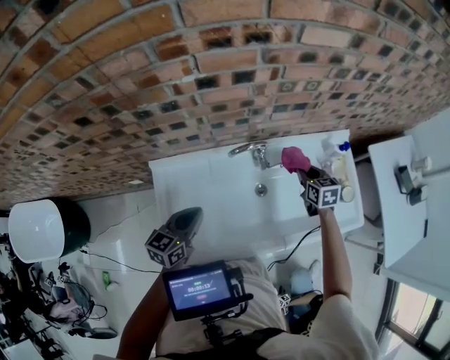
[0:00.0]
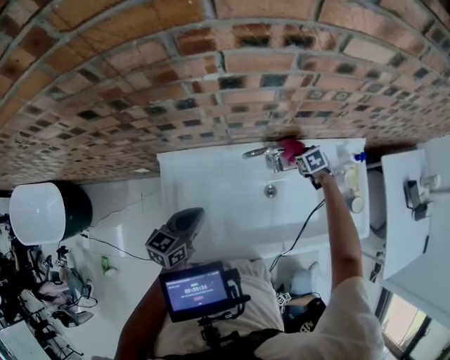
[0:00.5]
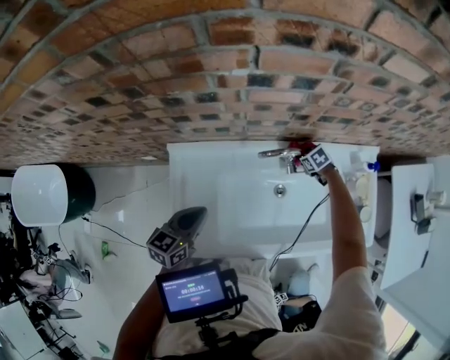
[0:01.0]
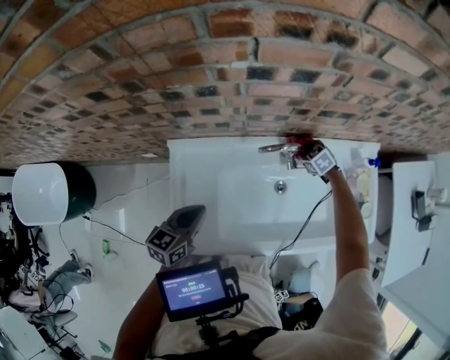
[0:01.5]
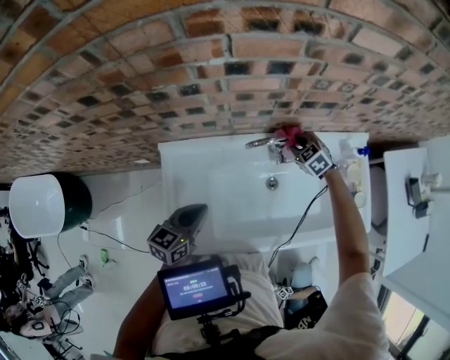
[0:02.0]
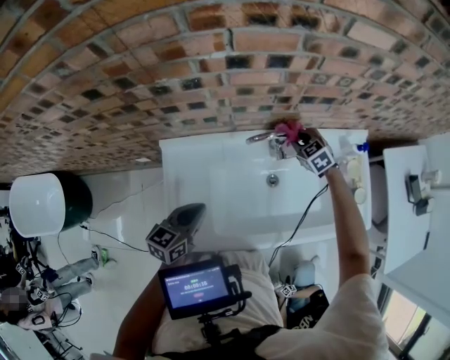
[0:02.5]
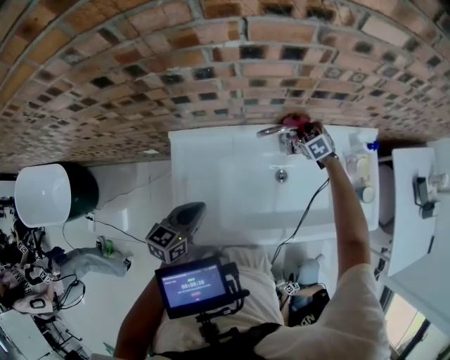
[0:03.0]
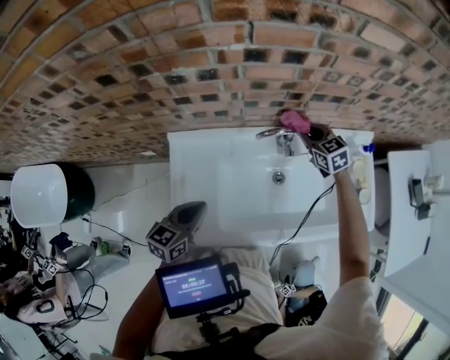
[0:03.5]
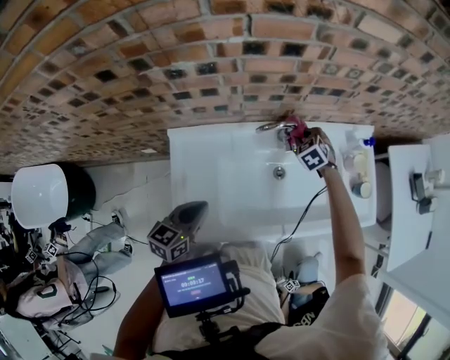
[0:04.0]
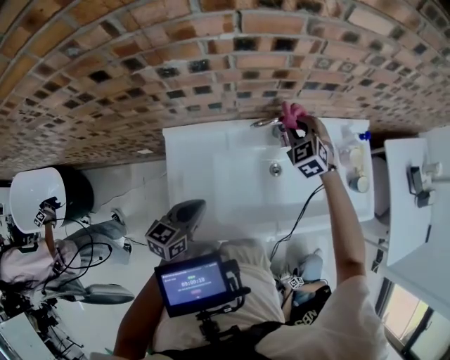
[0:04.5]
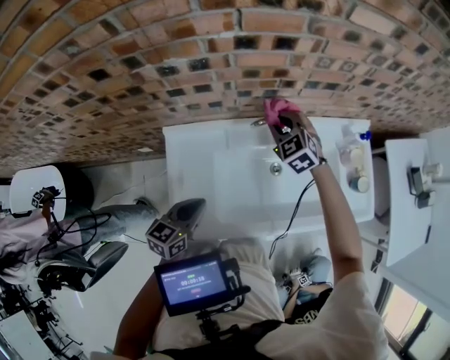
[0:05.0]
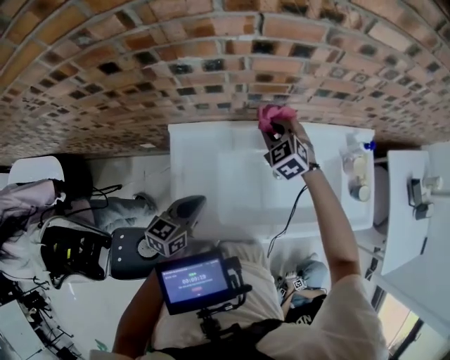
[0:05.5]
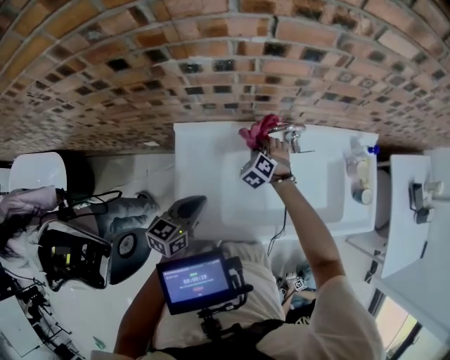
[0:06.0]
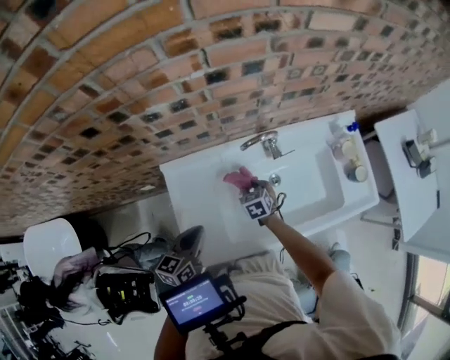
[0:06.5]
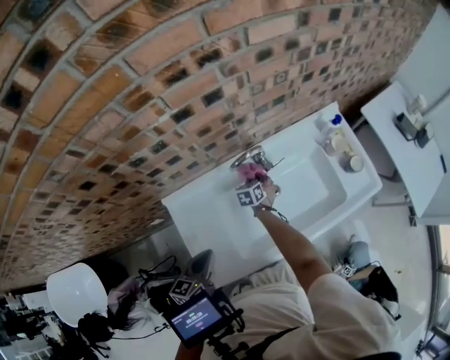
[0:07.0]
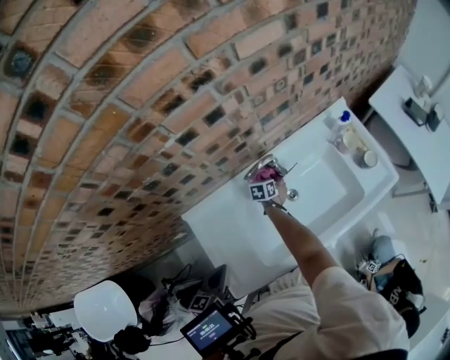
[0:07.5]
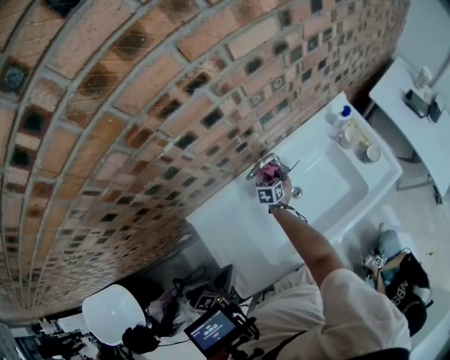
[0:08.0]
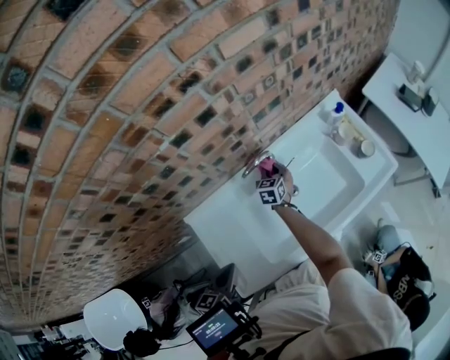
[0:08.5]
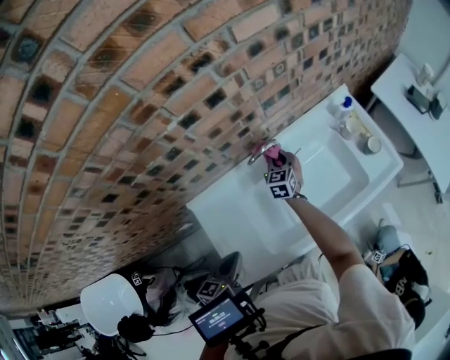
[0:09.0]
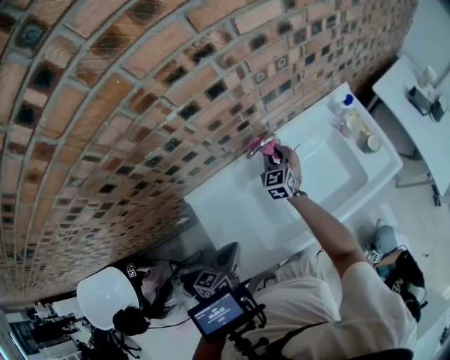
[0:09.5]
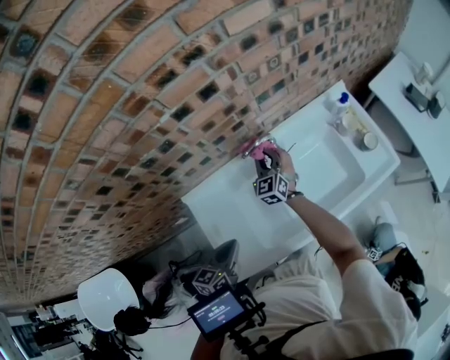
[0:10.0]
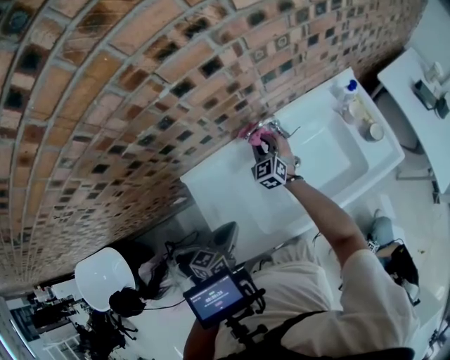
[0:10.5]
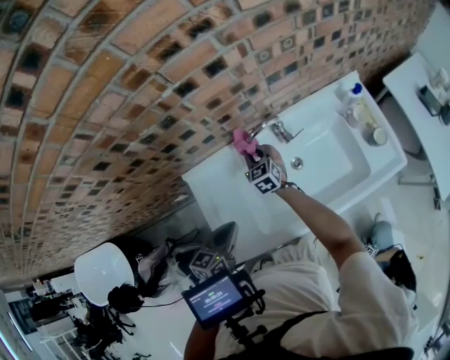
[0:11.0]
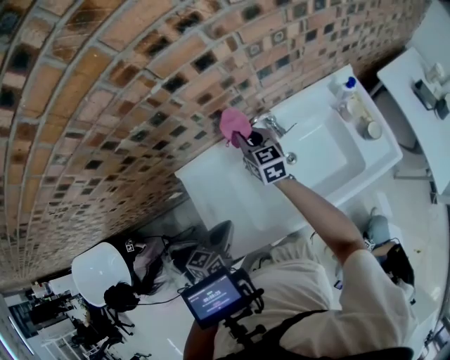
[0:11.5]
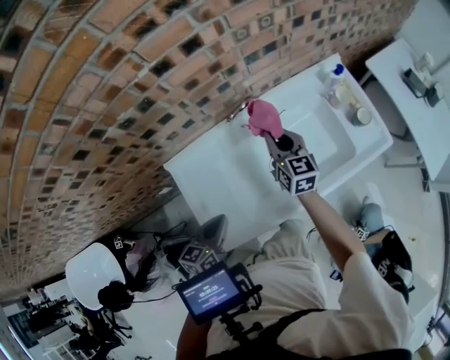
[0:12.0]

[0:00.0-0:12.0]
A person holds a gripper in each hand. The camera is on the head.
0:00.0 to 0:02.0: The right gripper goes some 15 cm to the left, forward and downward, and rotates around the line of its fingers by some 40 degrees, counterclockwise from behind.
0:02.0 to 0:04.0: The left gripper travels backward by about 5 cm; the right gripper moves about 10 cm upward and comes back.
0:04.0 to 0:06.0: The right gripper is displaced to the left and backward by some 20 cm.
0:06.0 to 0:08.0: The right gripper heads to the right, forward and downward, covering approximately 15 cm, and rotates around the line of its fingers by roughly 70 degrees, clockwise from behind.
0:08.0 to 0:10.0: The right gripper heads upward, covering about 15 cm, and turns by some 40 degrees.
0:10.0 to 0:12.0: The right gripper goes roughly 15 cm to the right, upward and backward, and turns by roughly 40 degrees.

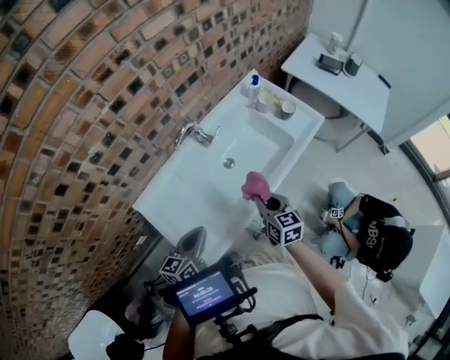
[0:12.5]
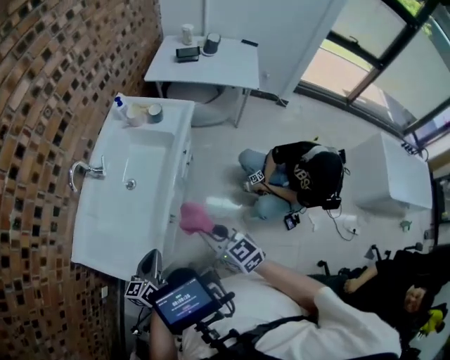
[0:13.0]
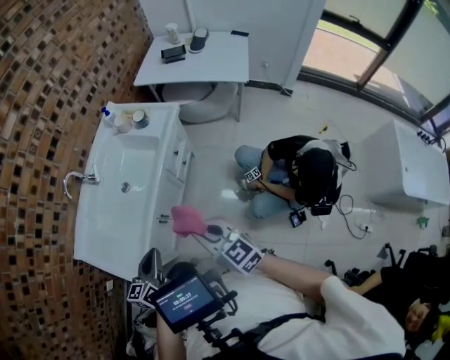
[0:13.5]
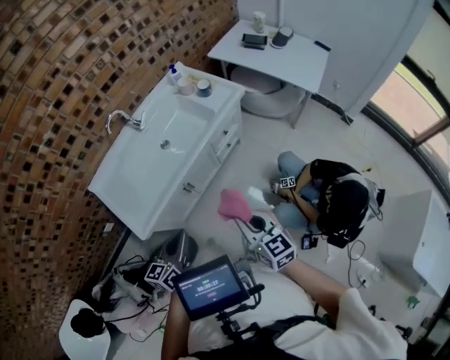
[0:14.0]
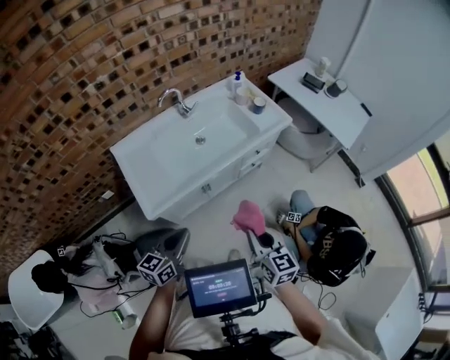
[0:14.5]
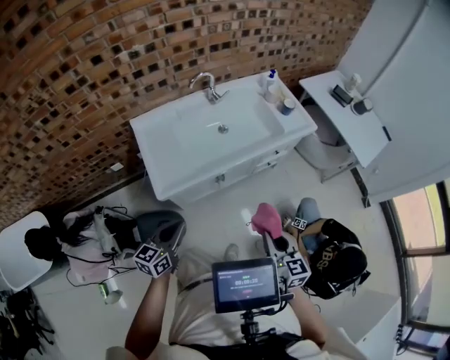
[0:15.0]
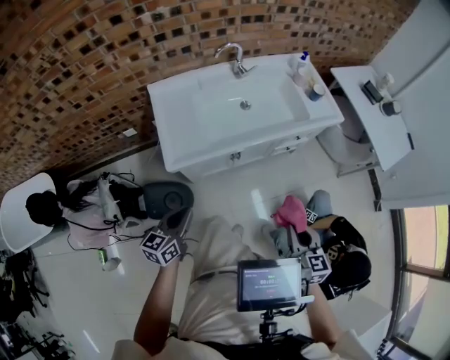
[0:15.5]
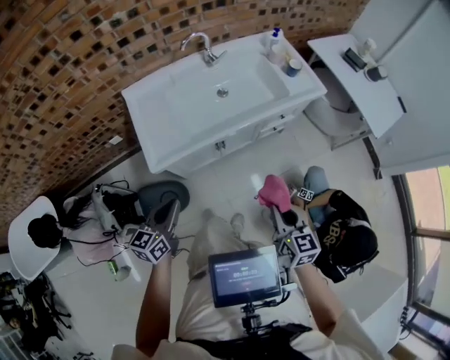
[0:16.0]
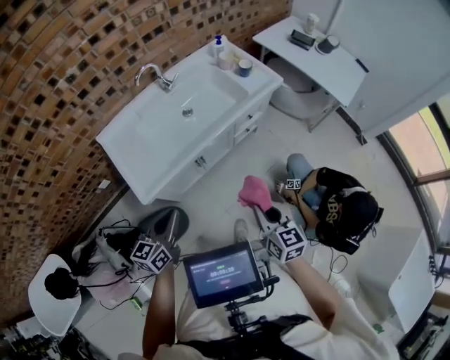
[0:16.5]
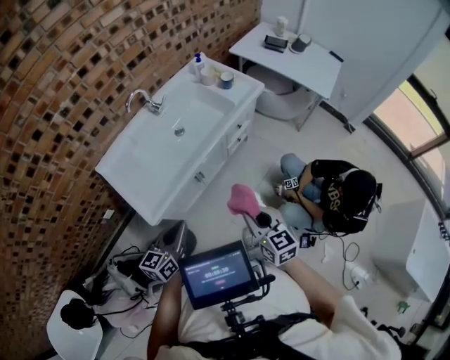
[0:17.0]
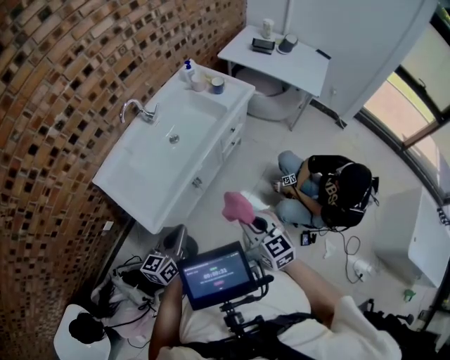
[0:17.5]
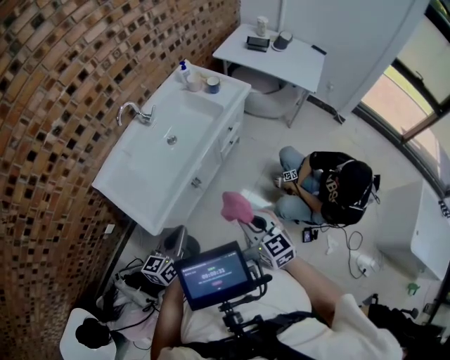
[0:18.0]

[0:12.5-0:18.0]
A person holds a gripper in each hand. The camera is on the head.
0:12.5 to 0:14.5: Both grippers travel together backward and to the right, about 35 cm.
0:14.5 to 0:16.0: The right gripper travels downward by about 5 cm. Meanwhile the left gripper travels to the left by roughly 5 cm.
0:16.0 to 0:18.0: The left gripper ends up approximately 5 cm from where it was, and changes its angle by roughly 30 degrees, while the right gripper travels to the left by about 5 cm.

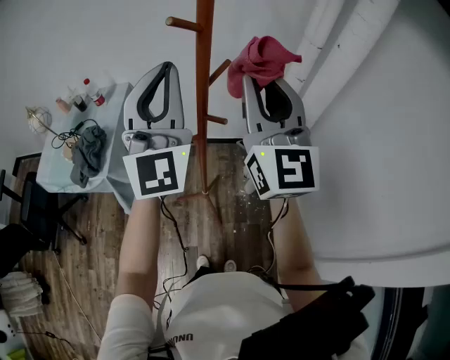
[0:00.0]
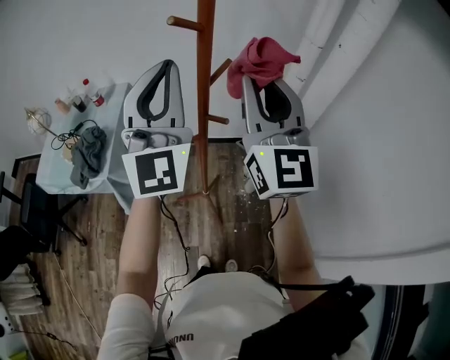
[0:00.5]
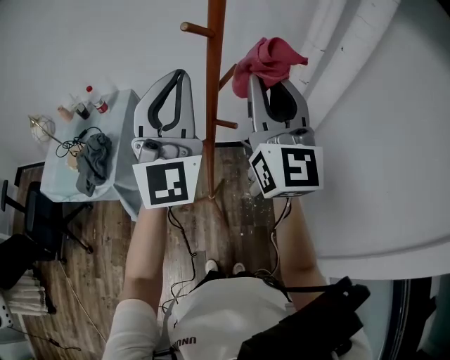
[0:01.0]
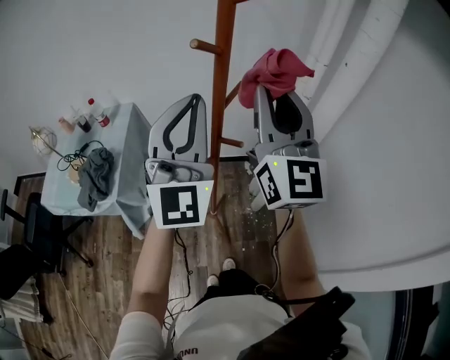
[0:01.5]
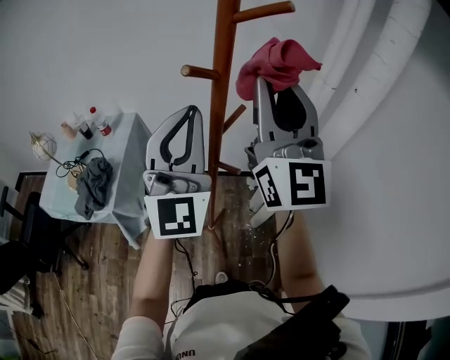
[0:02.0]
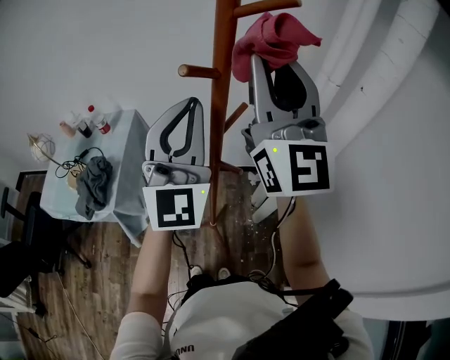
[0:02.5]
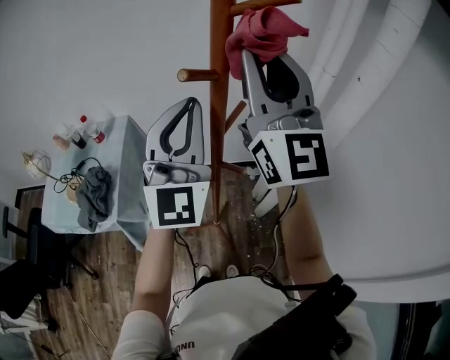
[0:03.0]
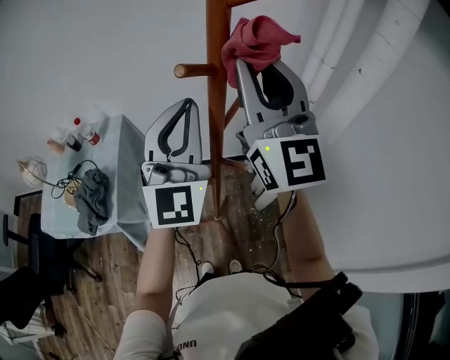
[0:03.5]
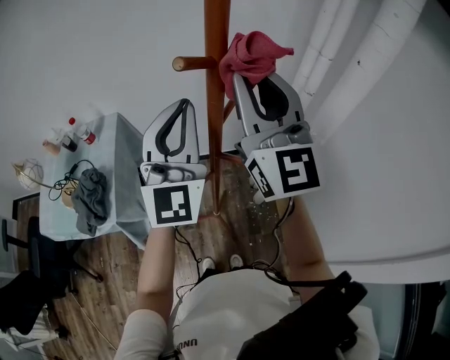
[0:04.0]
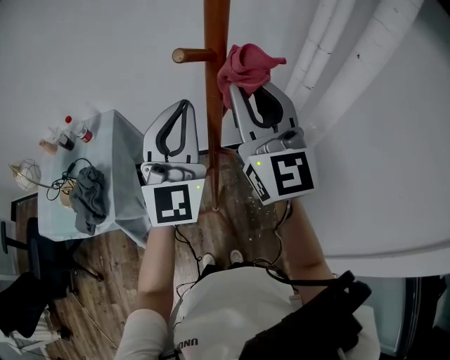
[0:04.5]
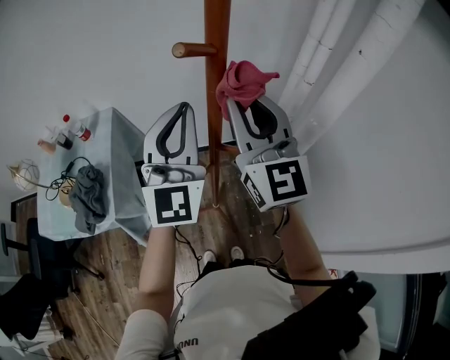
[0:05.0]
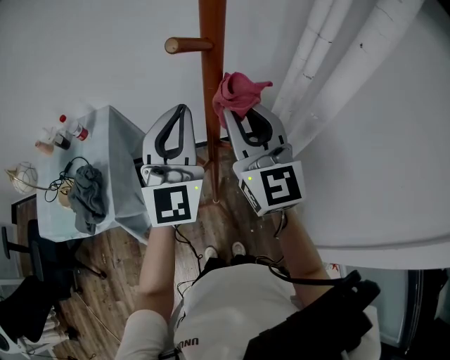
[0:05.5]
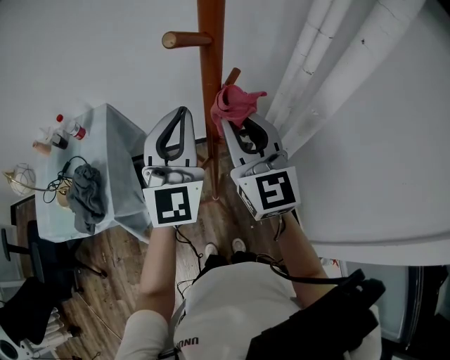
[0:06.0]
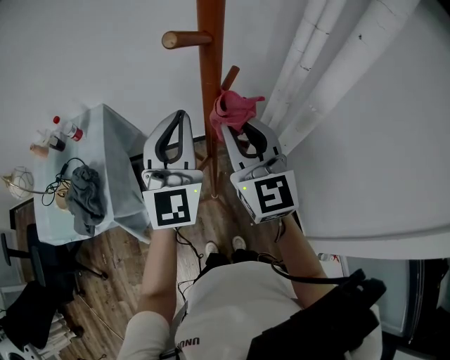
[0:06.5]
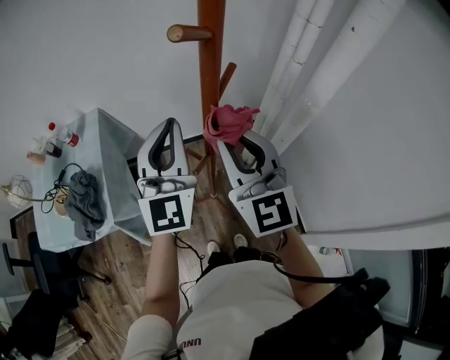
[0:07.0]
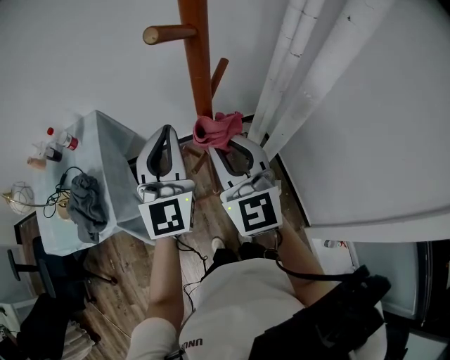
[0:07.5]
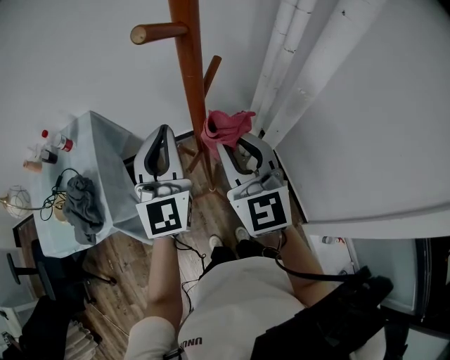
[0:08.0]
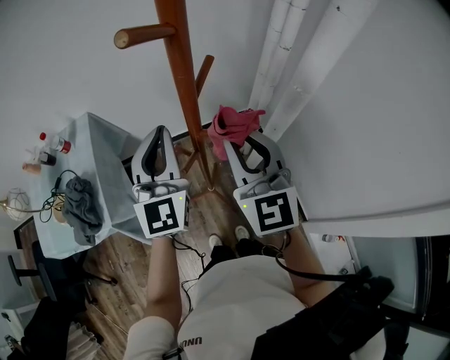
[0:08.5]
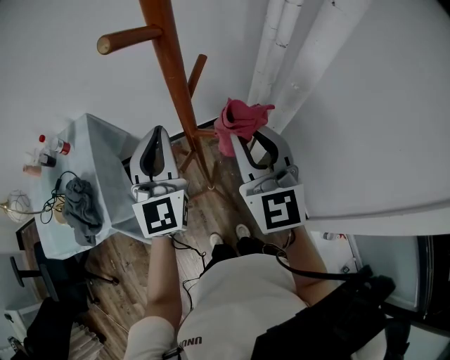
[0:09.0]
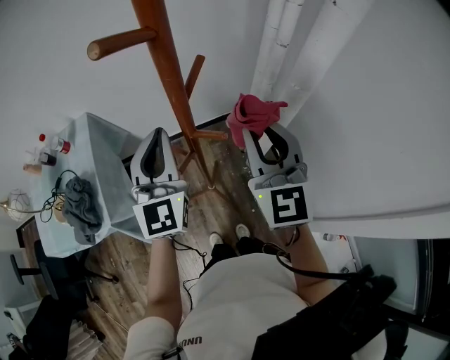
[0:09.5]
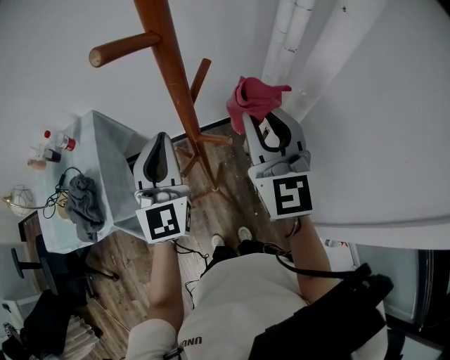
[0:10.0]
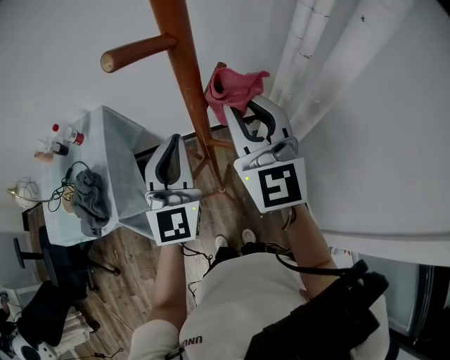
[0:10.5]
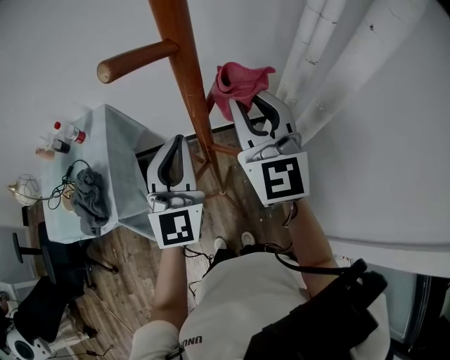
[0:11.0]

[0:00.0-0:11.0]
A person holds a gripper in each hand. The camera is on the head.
0:00.0 to 0:02.0: The right gripper travels upward and forward by some 10 cm, while the left gripper changes place by some 5 cm.
0:02.0 to 0:03.5: The left gripper heads forward, covering about 5 cm. Meanwhile the right gripper changes place by about 5 cm.
0:03.5 to 0:05.5: The right gripper travels downward by some 15 cm. The left gripper heads downward, covering roughly 5 cm.
0:05.5 to 0:07.5: Both grippers travel together downward, some 5 cm.
0:07.5 to 0:09.0: The right gripper shifts roughly 5 cm to the right.
0:09.0 to 0:11.0: The right gripper goes some 10 cm forward.
